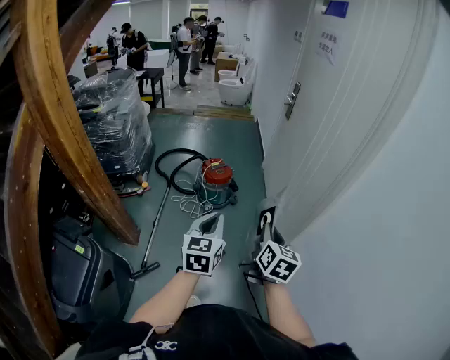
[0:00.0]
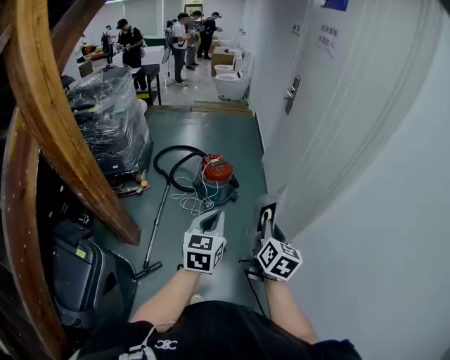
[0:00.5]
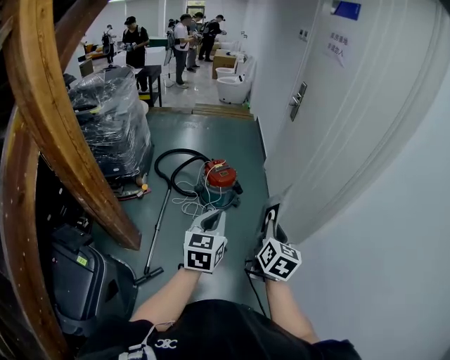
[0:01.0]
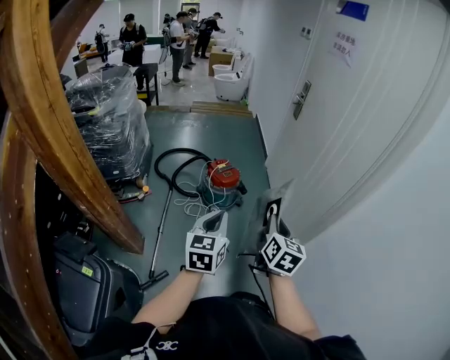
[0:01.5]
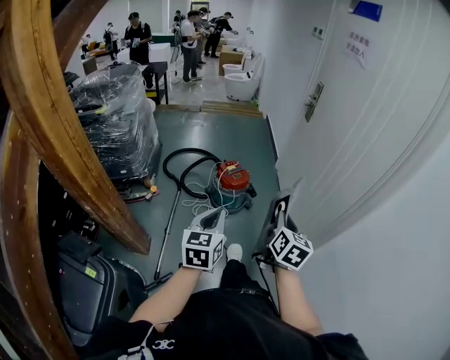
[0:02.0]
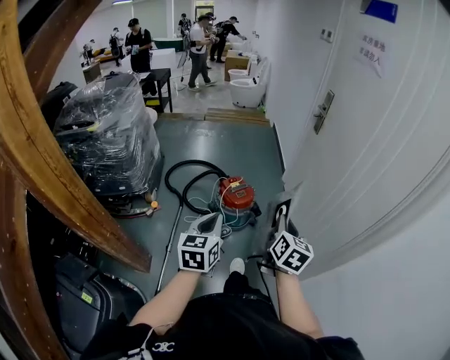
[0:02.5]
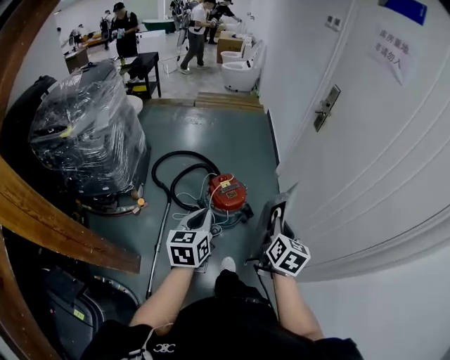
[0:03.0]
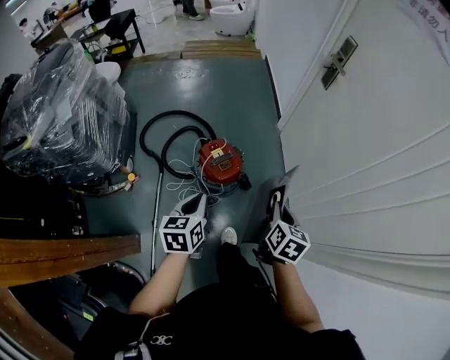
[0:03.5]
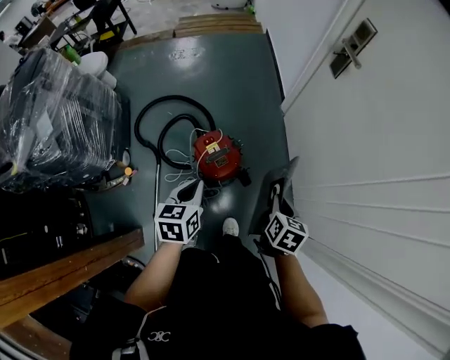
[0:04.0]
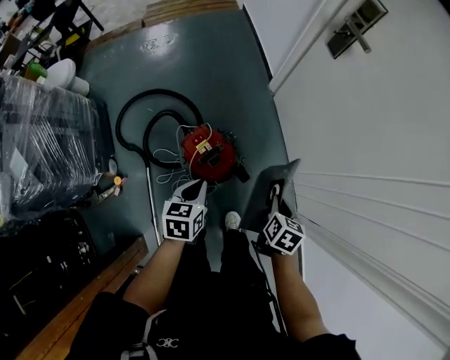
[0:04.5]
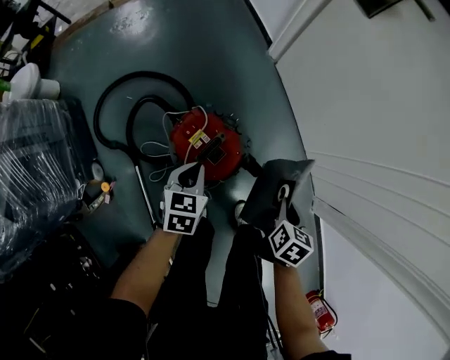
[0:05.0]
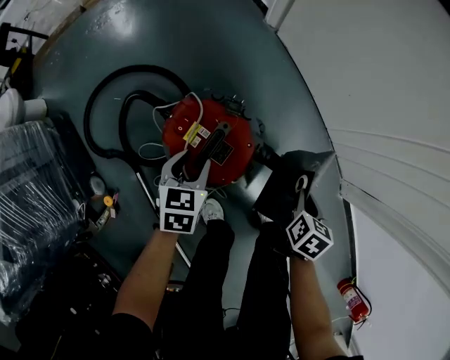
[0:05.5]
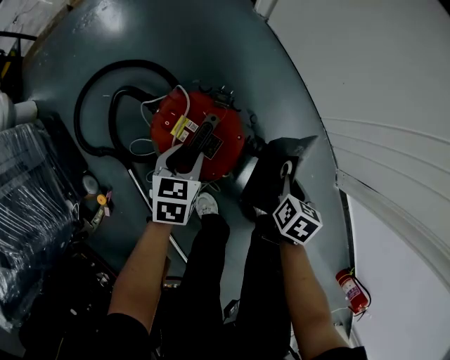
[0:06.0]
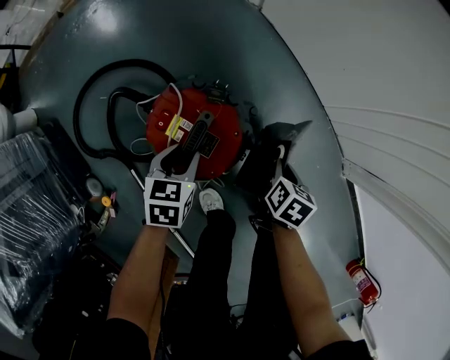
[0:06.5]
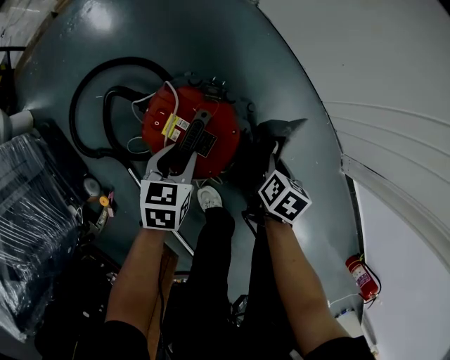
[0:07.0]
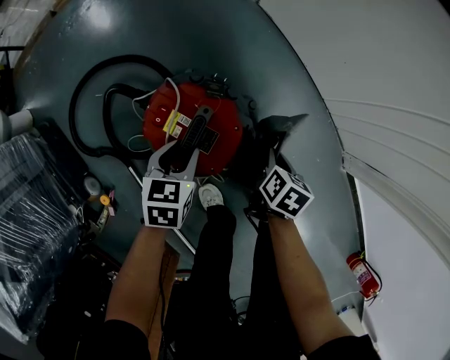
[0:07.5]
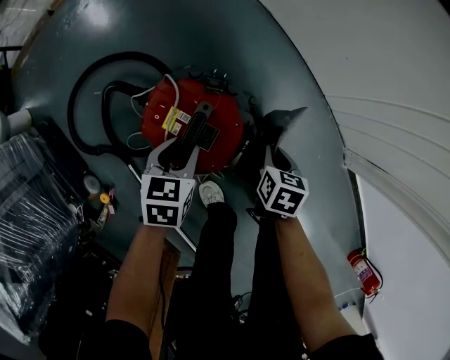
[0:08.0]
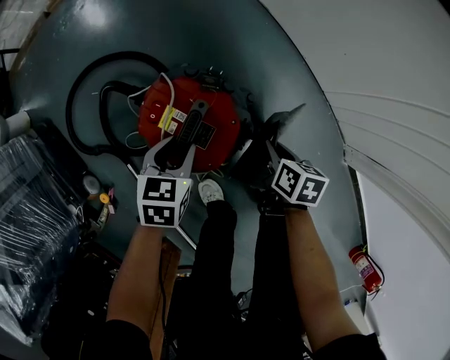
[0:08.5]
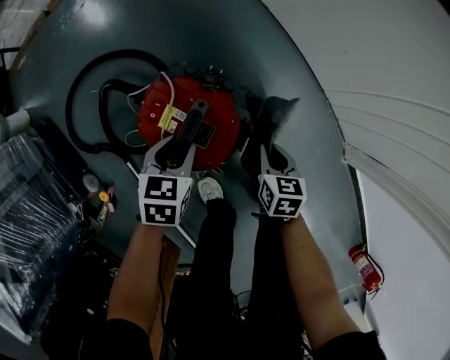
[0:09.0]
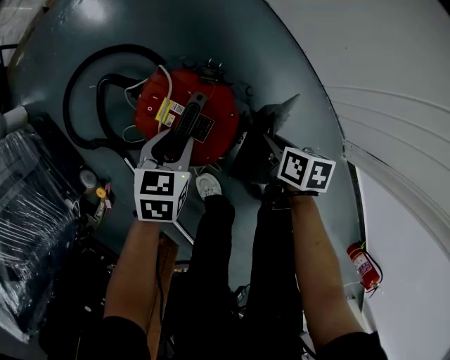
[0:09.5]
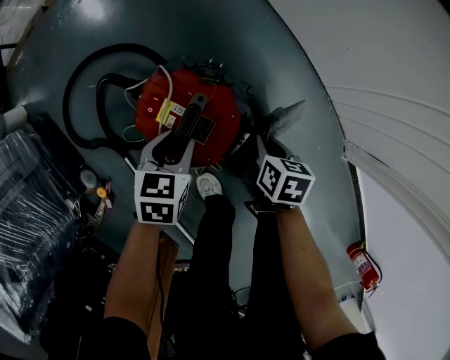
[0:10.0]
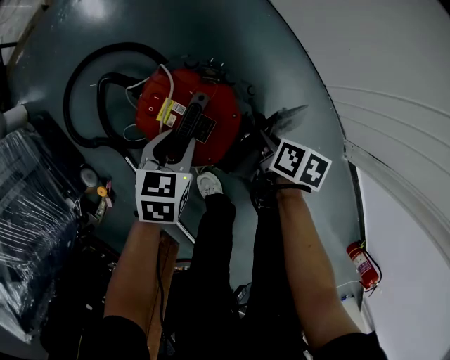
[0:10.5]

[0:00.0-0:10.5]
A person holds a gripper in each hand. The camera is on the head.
0:00.0 to 0:02.0: The right gripper travels forward and to the left by roughly 15 cm; the left gripper moves to the left and forward, some 15 cm.
0:02.0 to 0:04.0: The pair of grippers is taken forward, some 40 cm. The right gripper is displaced downward by about 20 cm, and changes its angle by some 30 degrees. Meanwhile the left gripper swivels about 20 degrees.
0:04.0 to 0:06.5: The grippers both shift downward by some 40 cm. The right gripper turns by some 40 degrees. Meanwhile the left gripper turns by roughly 40 degrees, and opens.

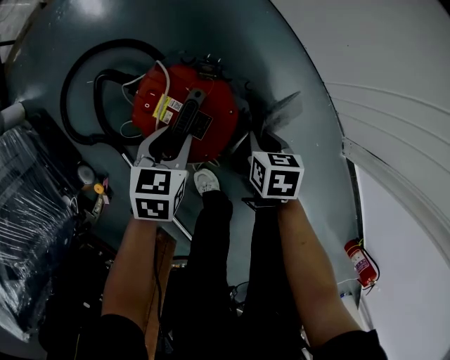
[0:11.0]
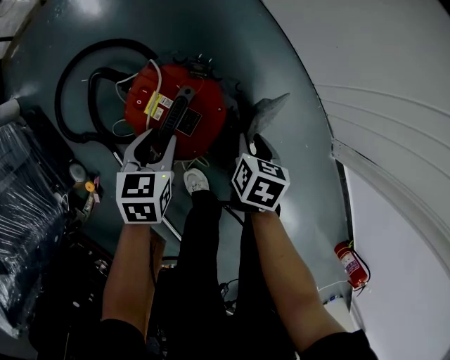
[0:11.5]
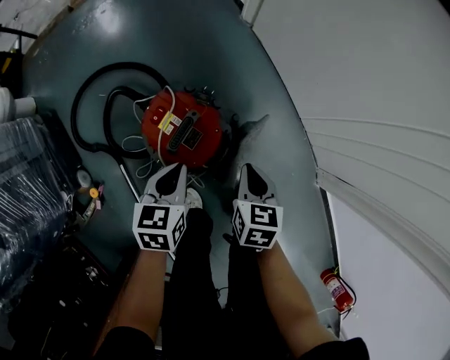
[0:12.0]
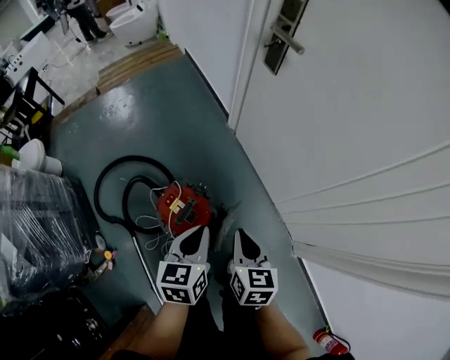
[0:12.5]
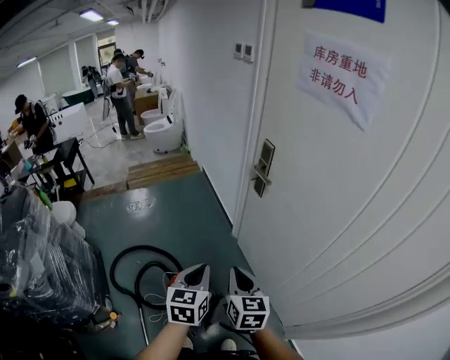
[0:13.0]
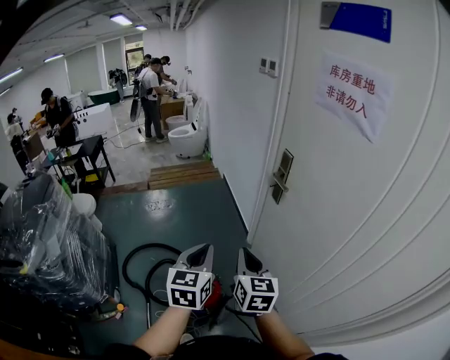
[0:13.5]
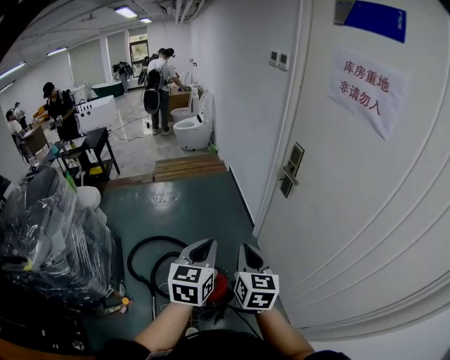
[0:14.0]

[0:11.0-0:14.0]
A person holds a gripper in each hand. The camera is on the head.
0:11.0 to 0:12.5: Both grippers move upward, roughly 40 cm. The left gripper rotates about 30 degrees, and closes. Meanwhile the right gripper rotates roughly 30 degrees.
0:12.5 to 0:14.0: Both grippers travel together upward, some 30 cm. The right gripper changes its angle by some 30 degrees, while the left gripper changes its angle by approximately 30 degrees.

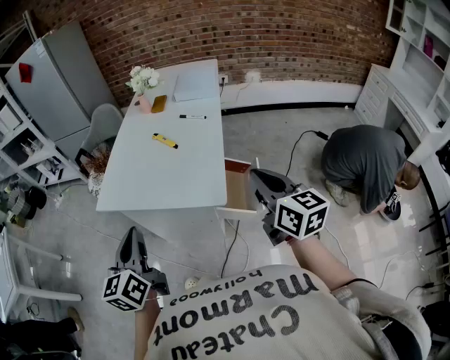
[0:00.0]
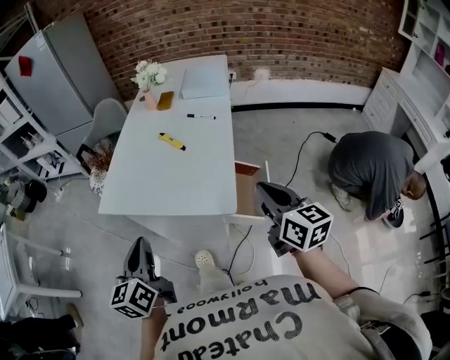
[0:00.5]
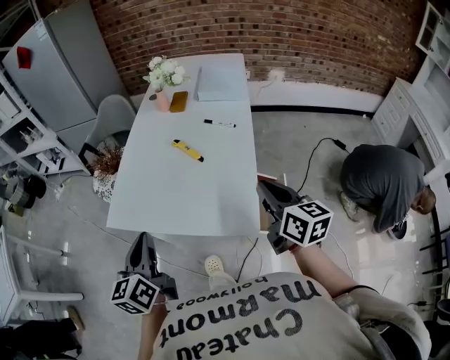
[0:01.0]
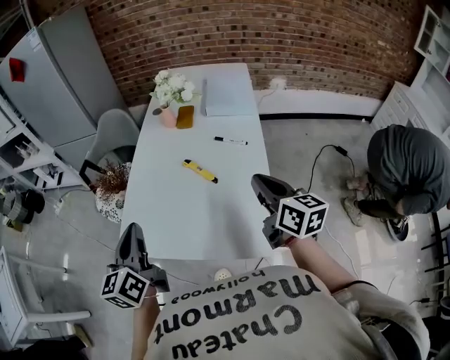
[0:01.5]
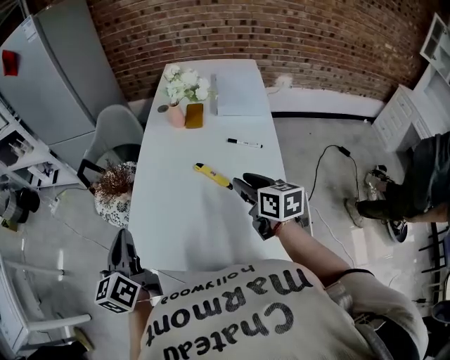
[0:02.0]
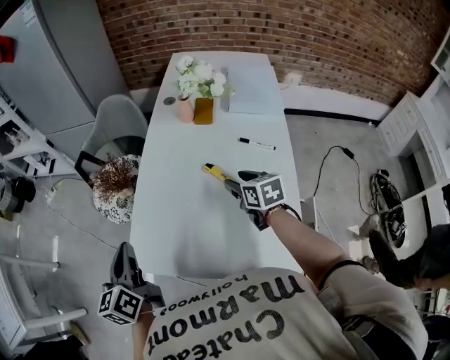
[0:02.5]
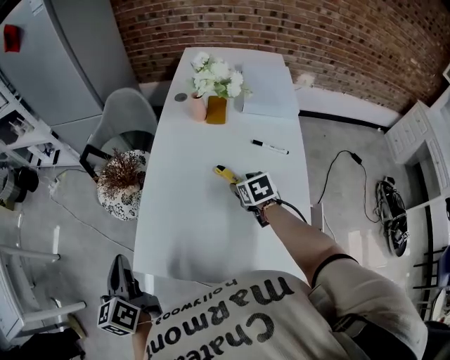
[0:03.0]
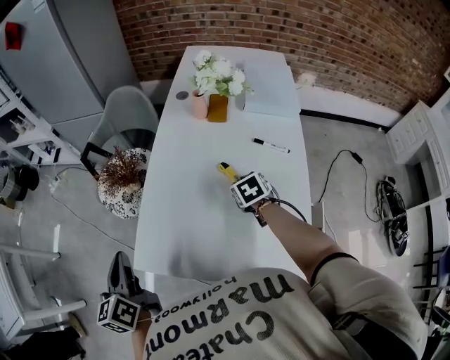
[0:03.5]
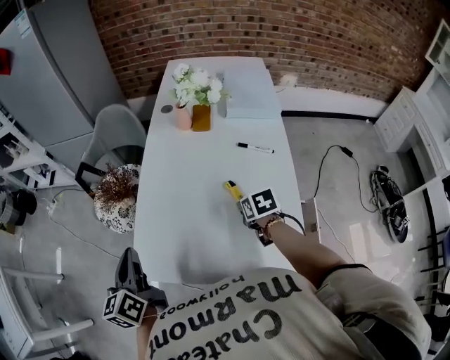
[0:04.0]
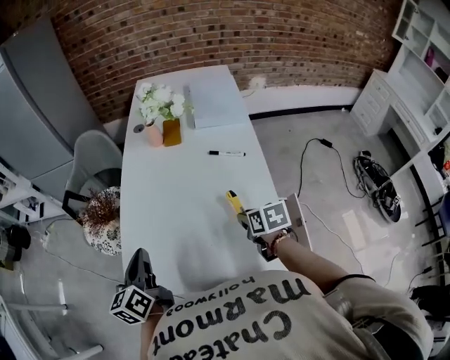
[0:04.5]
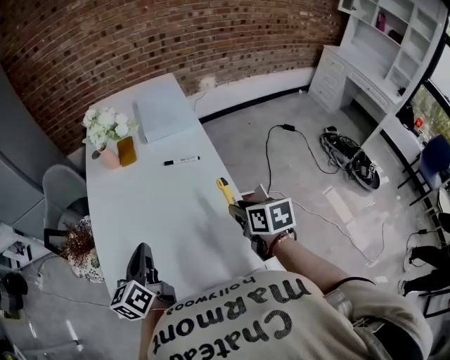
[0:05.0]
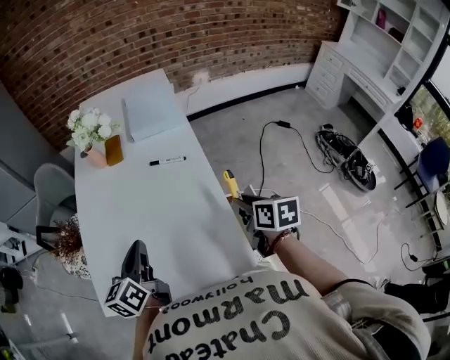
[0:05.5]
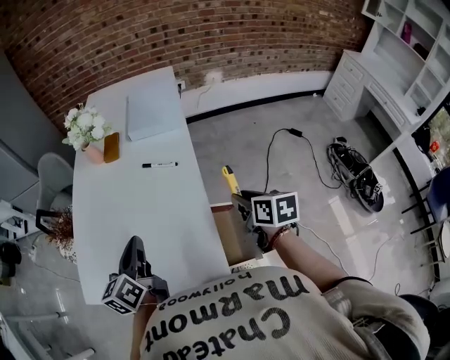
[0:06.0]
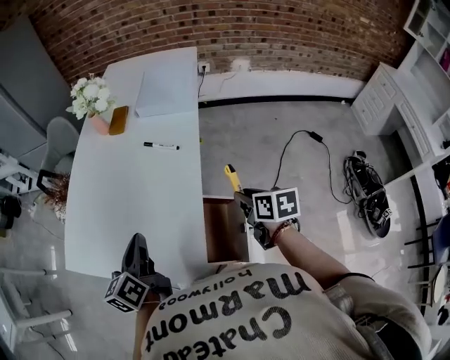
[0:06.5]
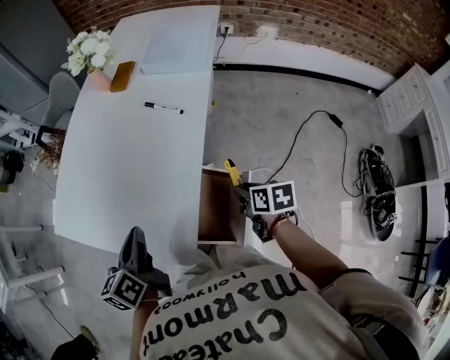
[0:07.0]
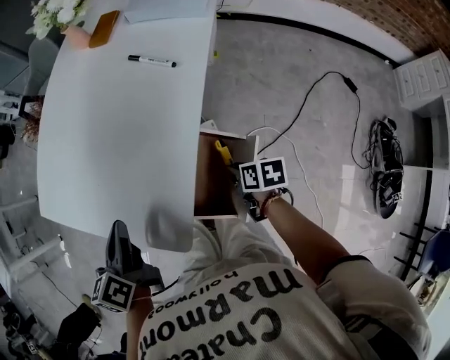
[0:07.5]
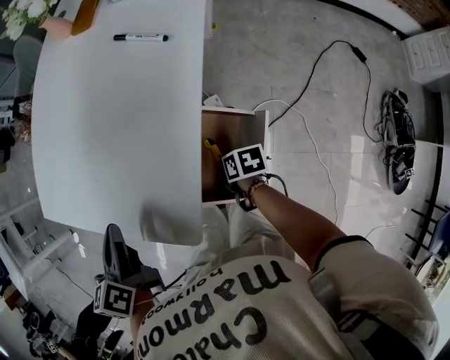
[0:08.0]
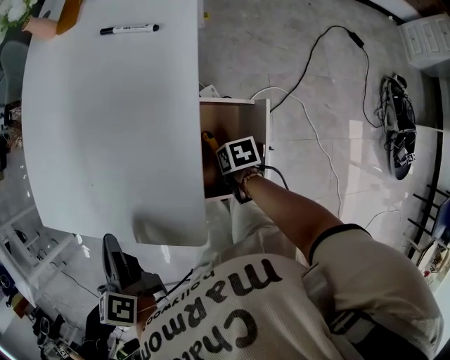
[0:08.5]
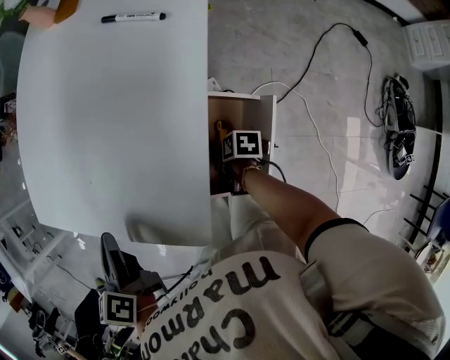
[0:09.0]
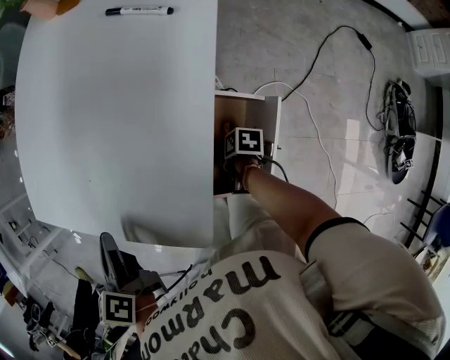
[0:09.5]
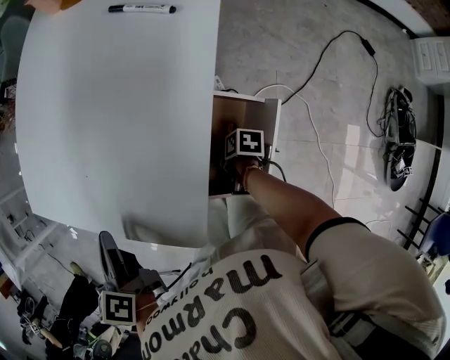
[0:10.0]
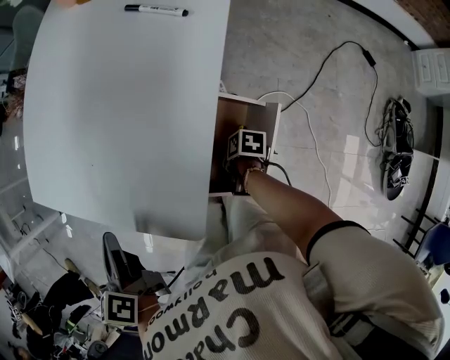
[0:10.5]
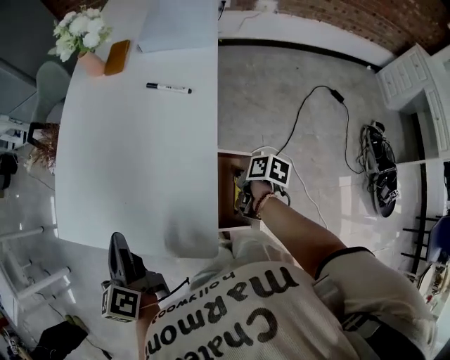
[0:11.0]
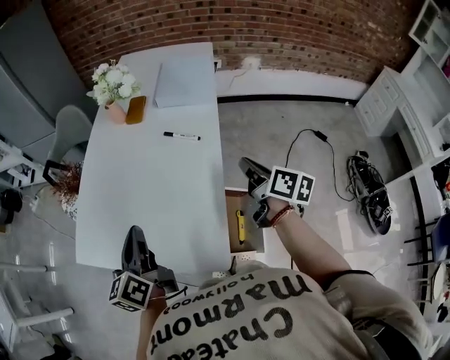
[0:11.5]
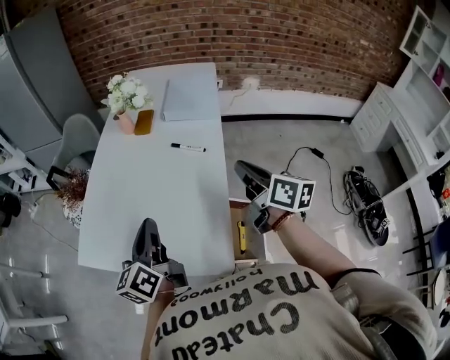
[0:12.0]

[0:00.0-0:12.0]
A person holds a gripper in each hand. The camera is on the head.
0:00.0 to 0:02.0: The grippers both shift forward and to the left by approximately 40 cm. The right gripper opens.
0:02.0 to 0:04.0: The right gripper heads downward, covering about 15 cm, points its fingers approximately 30 degrees further downward, and opens and closes again.
0:04.0 to 0:06.0: The grippers both shift to the right by roughly 35 cm. The right gripper swivels some 30 degrees.
0:06.0 to 0:08.0: The left gripper goes about 10 cm downward, and swivels some 30 degrees; the right gripper heads downward, covering about 35 cm, and turns by roughly 50 degrees.
0:08.0 to 0:10.0: The right gripper moves downward, approximately 10 cm, and turns by about 20 degrees.
0:10.0 to 0:12.0: The right gripper shifts approximately 50 cm upward, points its fingers about 50 degrees further upward, and closes its fingers, while the left gripper shifts approximately 15 cm upward, and points its fingers approximately 30 degrees further upward.

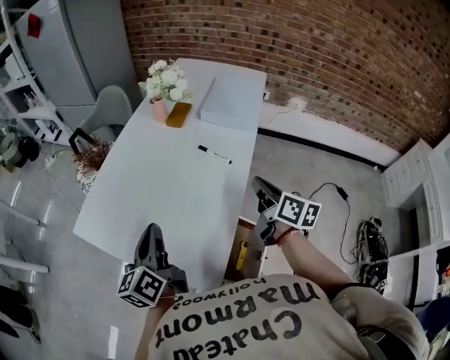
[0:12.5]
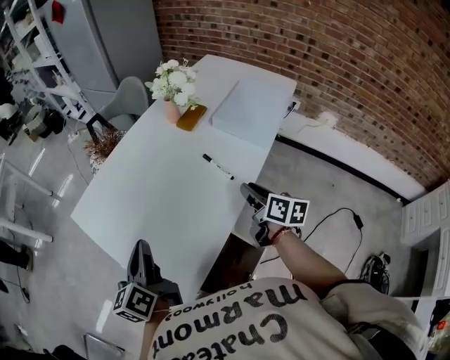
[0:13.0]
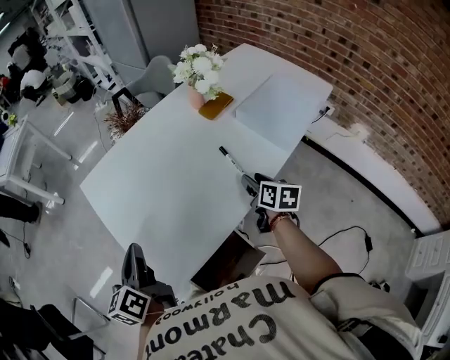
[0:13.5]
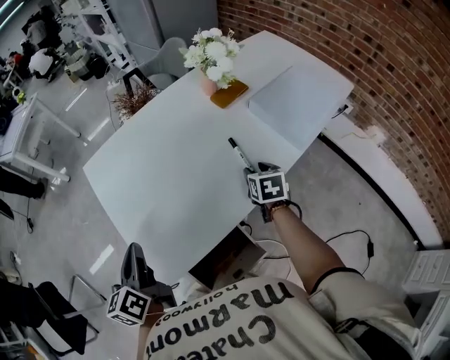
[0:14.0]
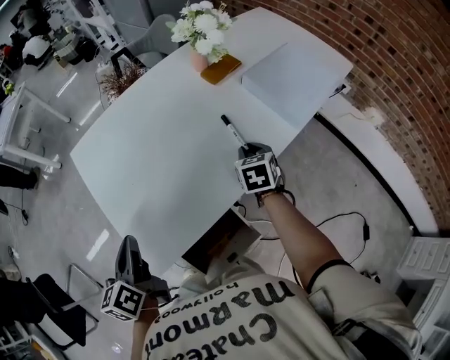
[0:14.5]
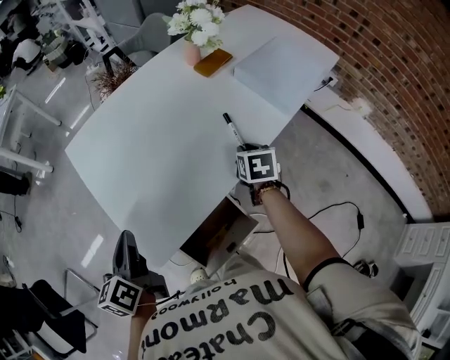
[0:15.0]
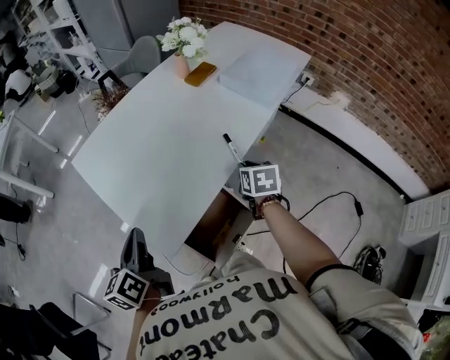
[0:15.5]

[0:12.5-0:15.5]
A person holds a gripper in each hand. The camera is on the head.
0:12.5 to 0:14.0: The left gripper moves approximately 10 cm, and swivels roughly 40 degrees. Meanwhile the right gripper moves roughly 25 cm, changes its angle by about 60 degrees, and opens its fingers.
0:14.0 to 0:15.5: The right gripper shifts some 15 cm backward, and closes, while the left gripper goes approximately 5 cm backward.
